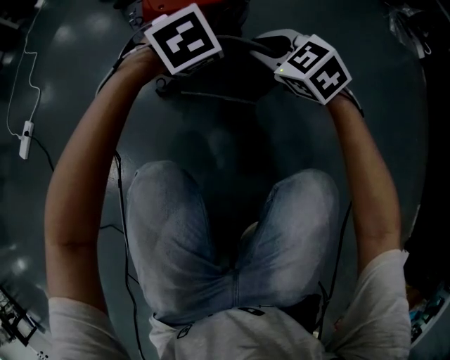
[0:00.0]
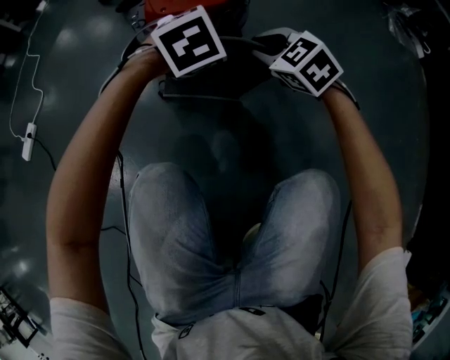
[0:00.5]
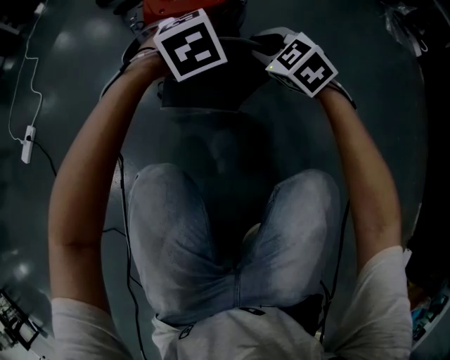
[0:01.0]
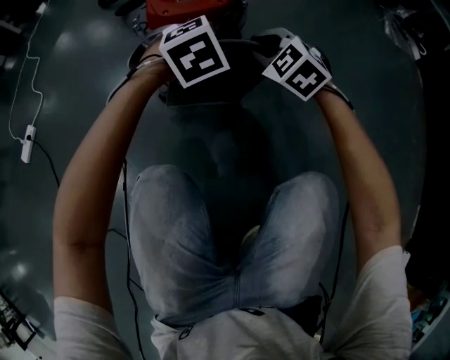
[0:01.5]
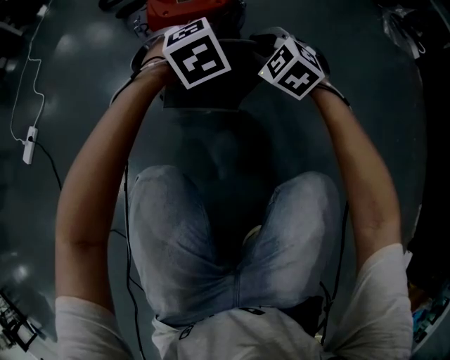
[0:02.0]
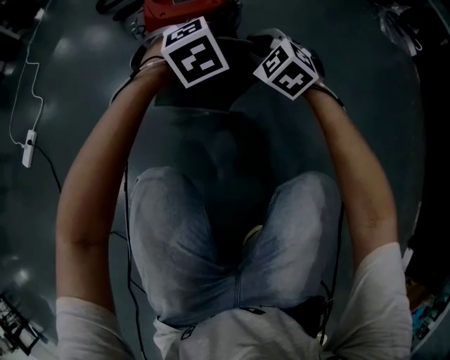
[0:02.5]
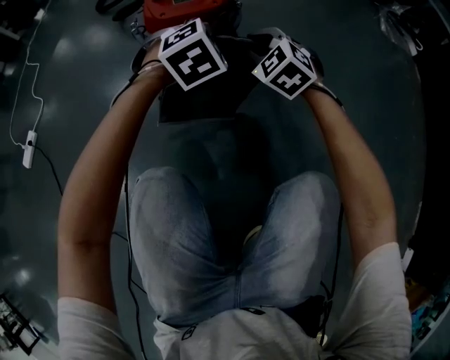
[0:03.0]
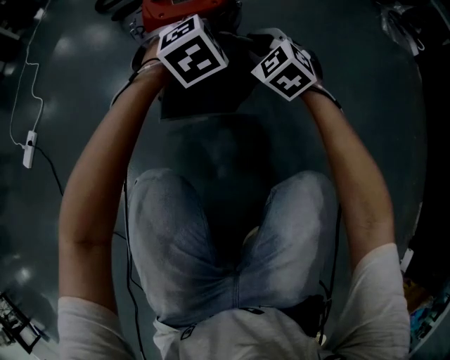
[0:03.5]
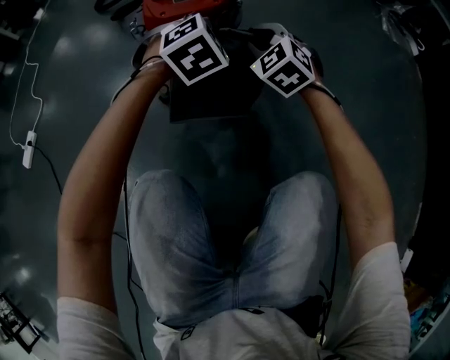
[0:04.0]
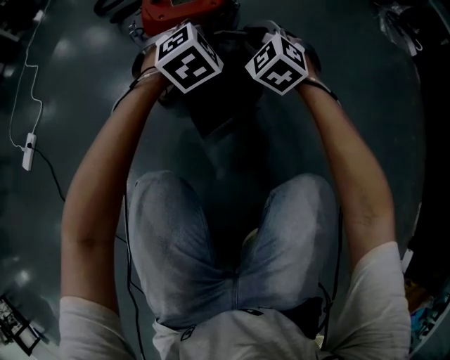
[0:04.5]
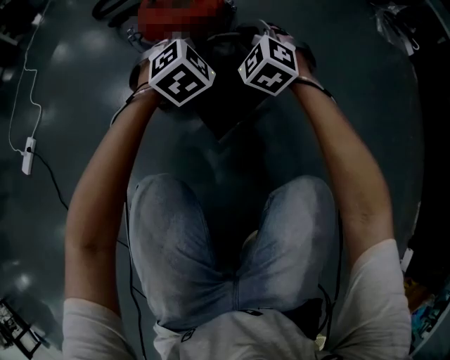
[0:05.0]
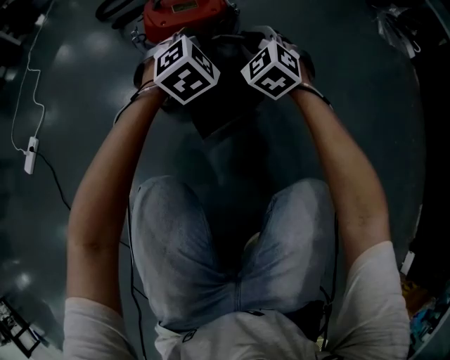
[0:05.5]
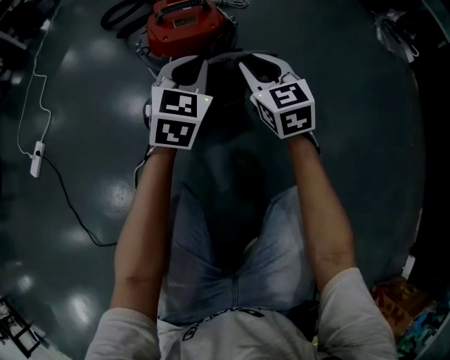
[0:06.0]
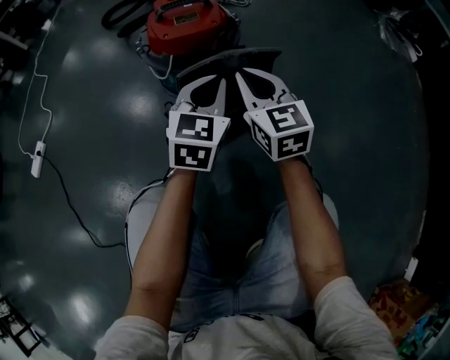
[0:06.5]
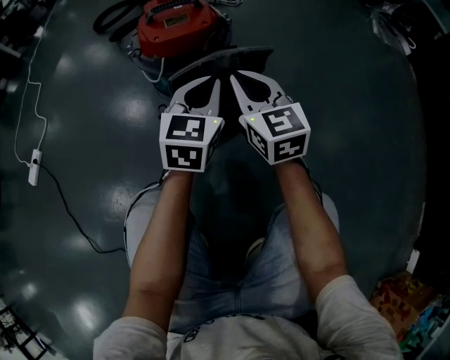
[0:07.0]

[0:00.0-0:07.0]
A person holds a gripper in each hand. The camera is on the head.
0:00.0 to 0:02.0: The right gripper turns by about 20 degrees.
0:02.0 to 0:05.0: The grippers move only a little.
0:05.0 to 0:07.0: Both grippers travel together backward, roughly 10 cm. The left gripper rolls counterclockwise, seen from behind, by about 40 degrees, while the right gripper rolls clockwise, seen from behind, by approximately 50 degrees.

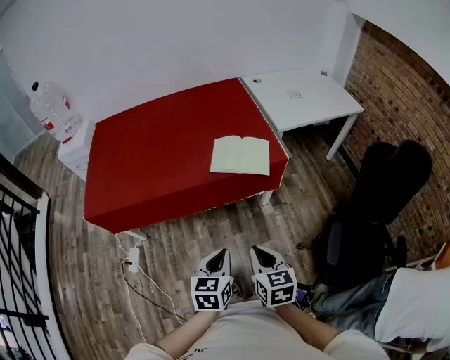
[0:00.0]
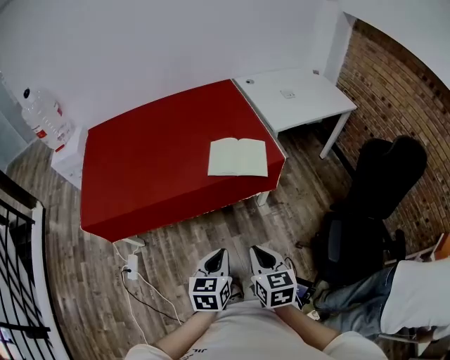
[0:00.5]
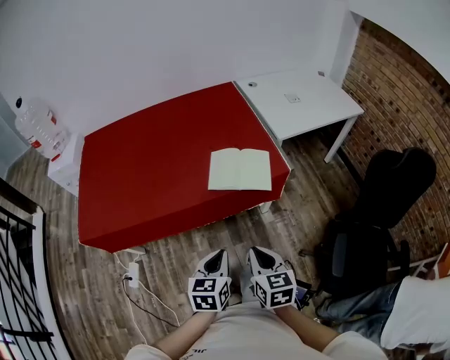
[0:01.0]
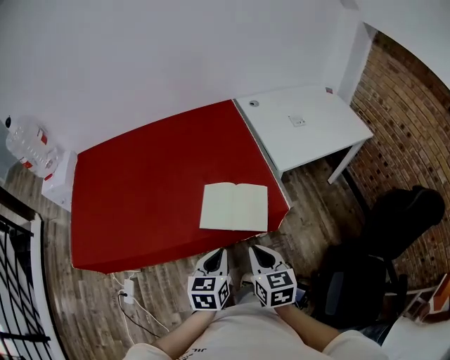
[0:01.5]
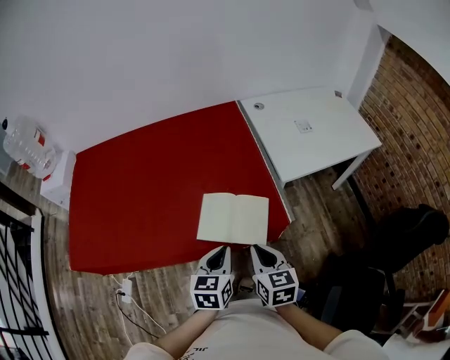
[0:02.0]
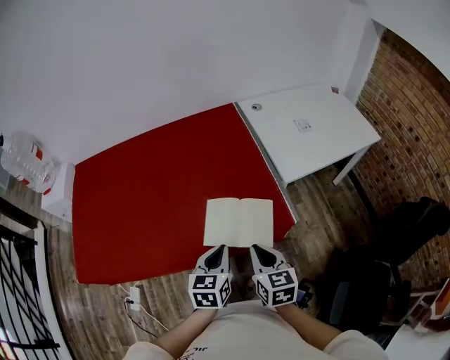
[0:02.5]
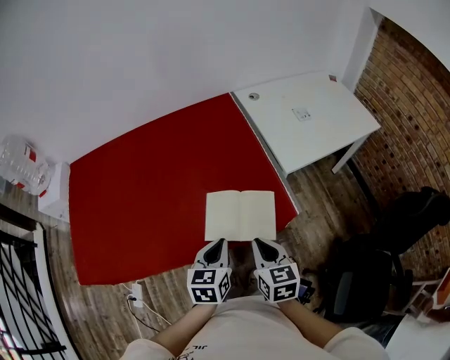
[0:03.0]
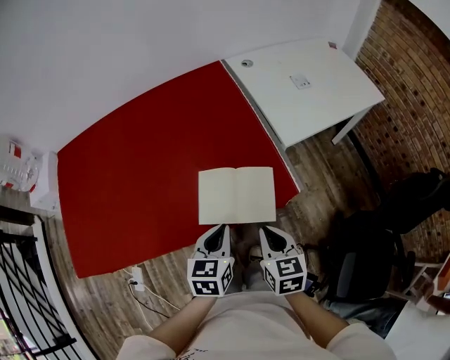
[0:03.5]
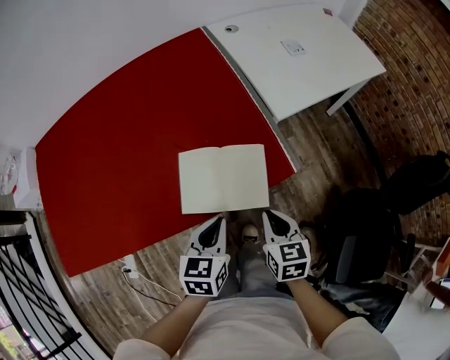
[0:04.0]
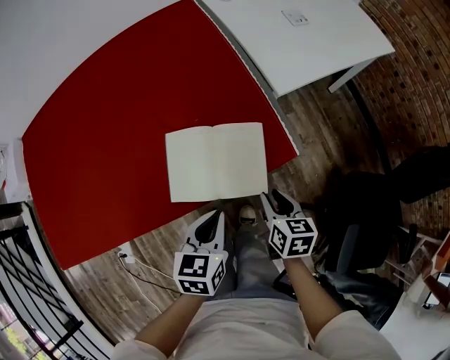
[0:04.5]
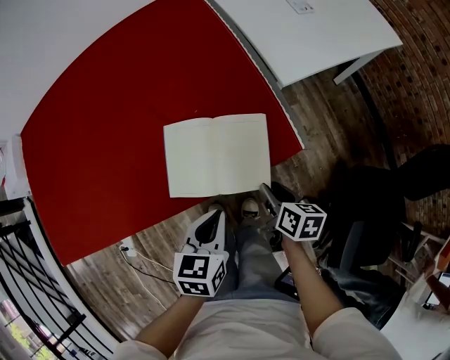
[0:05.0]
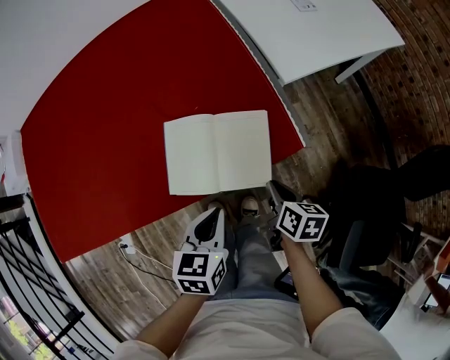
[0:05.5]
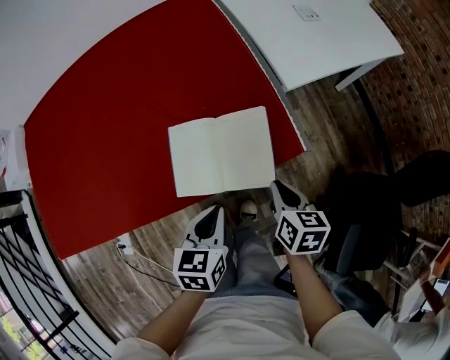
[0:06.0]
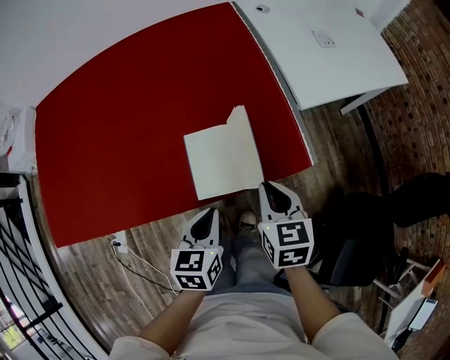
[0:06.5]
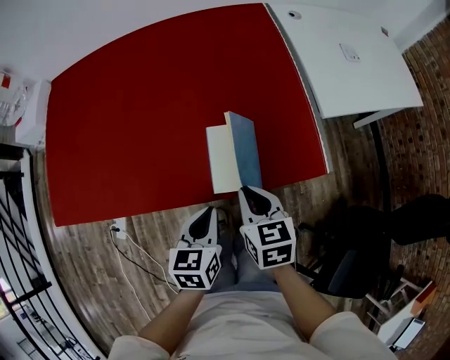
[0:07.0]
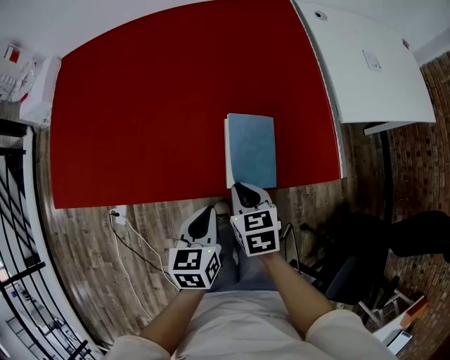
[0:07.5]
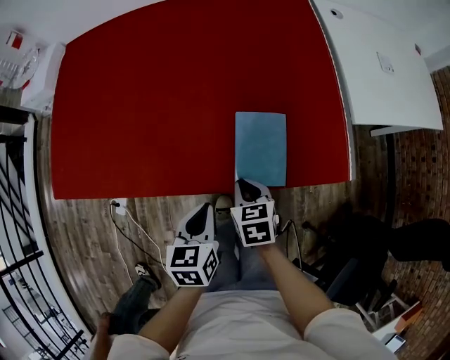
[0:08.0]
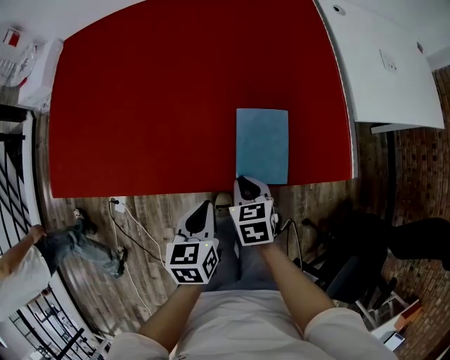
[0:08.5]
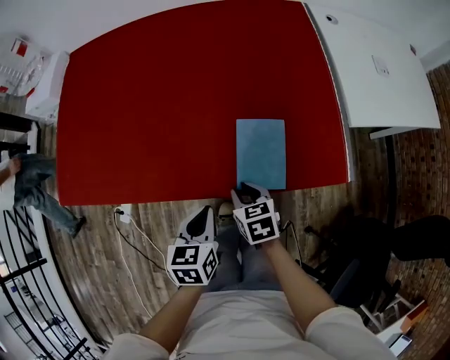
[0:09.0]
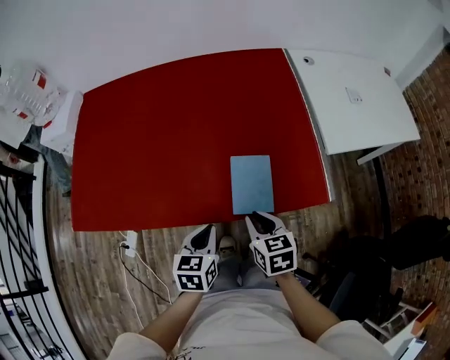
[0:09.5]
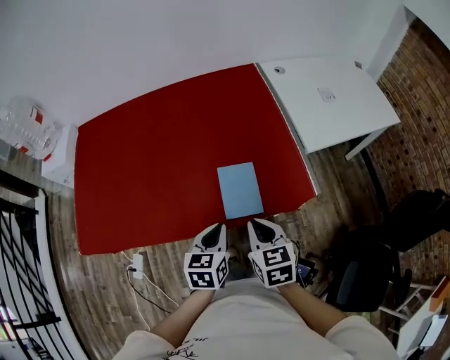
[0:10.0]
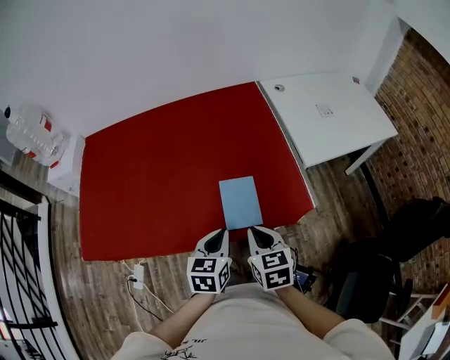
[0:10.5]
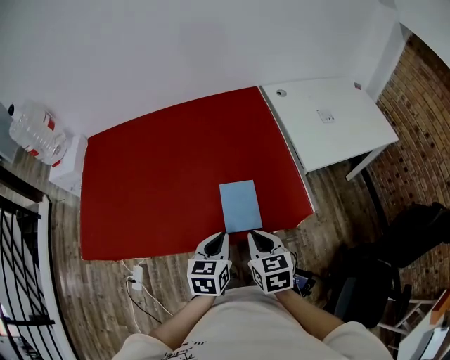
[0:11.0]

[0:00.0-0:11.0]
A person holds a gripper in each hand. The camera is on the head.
0:00.0 to 0:02.0: The grippers both shift forward by some 30 cm.
0:02.0 to 0:03.5: The grippers make only small movements.
0:03.5 to 0:05.5: The left gripper shifts approximately 10 cm downward, while the right gripper heads downward and to the right, covering roughly 15 cm, turns by some 30 degrees, and opens, then closes again.
0:05.5 to 0:07.5: The left gripper moves to the left, about 15 cm, and rotates roughly 20 degrees. Meanwhile the right gripper moves to the left, some 20 cm, and rotates around the line of its fingers by some 40 degrees, counterclockwise from behind.
0:07.5 to 0:09.0: The right gripper goes approximately 5 cm downward.
0:09.0 to 0:11.0: The left gripper travels upward and to the right by approximately 15 cm. The right gripper heads upward and to the right, covering approximately 20 cm, and changes its angle by approximately 20 degrees.

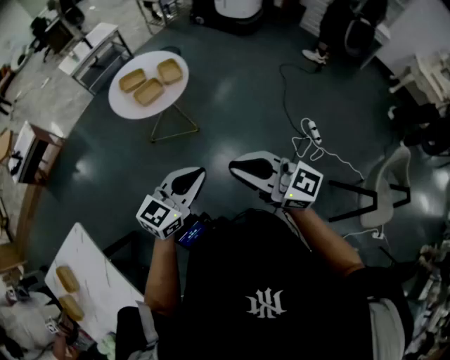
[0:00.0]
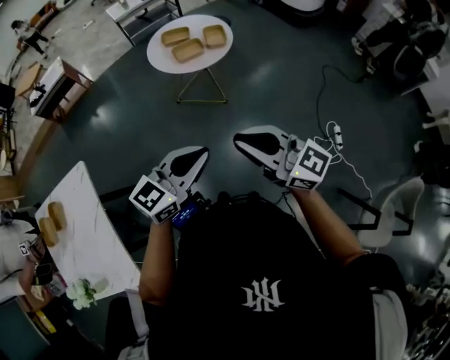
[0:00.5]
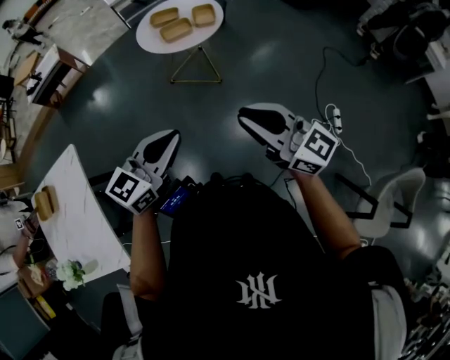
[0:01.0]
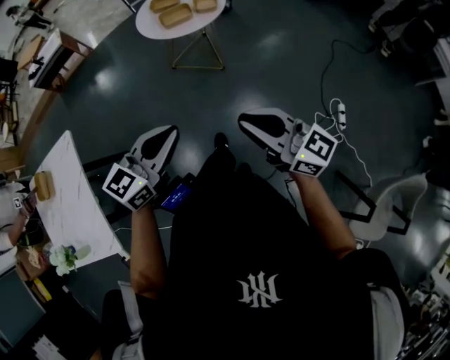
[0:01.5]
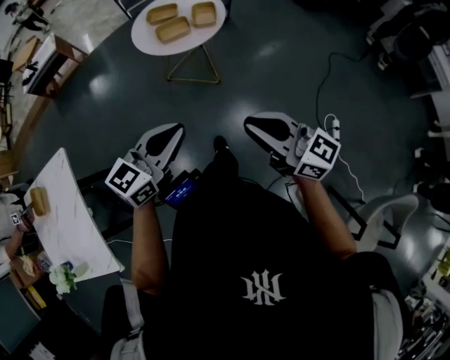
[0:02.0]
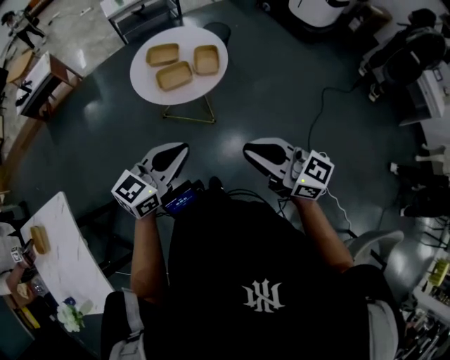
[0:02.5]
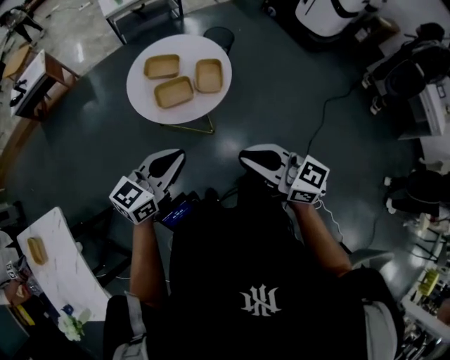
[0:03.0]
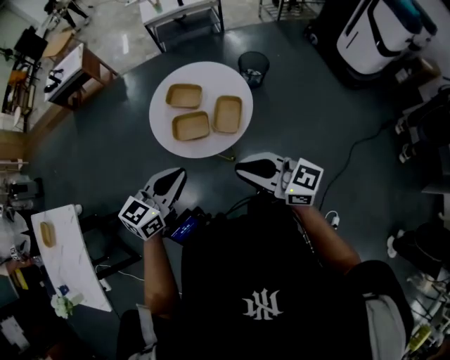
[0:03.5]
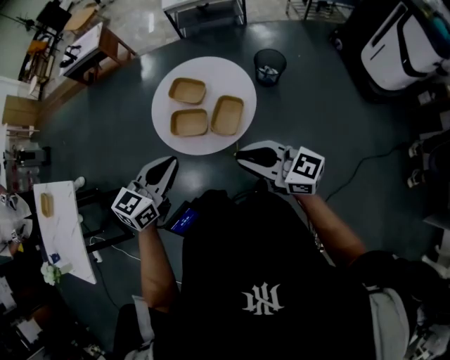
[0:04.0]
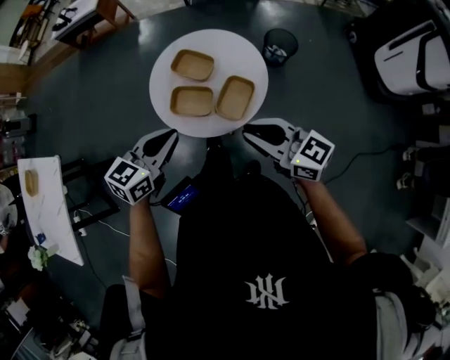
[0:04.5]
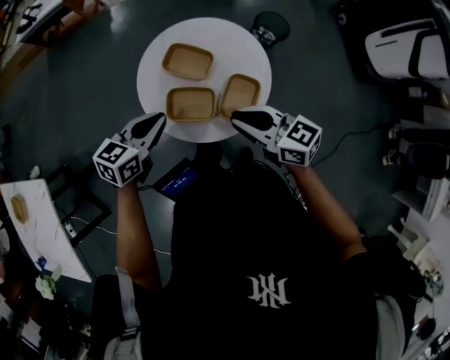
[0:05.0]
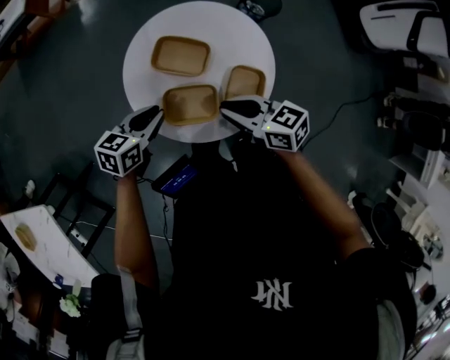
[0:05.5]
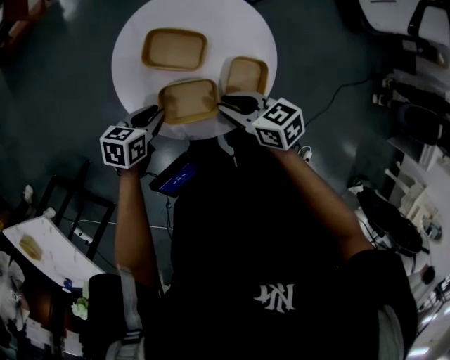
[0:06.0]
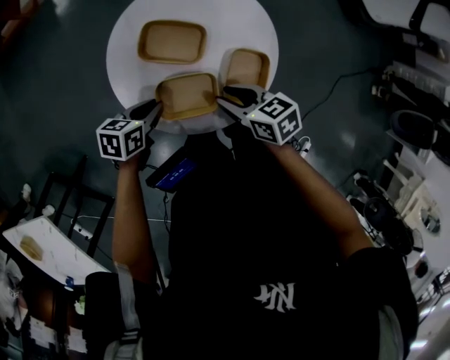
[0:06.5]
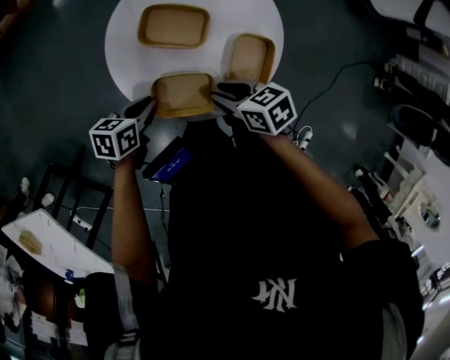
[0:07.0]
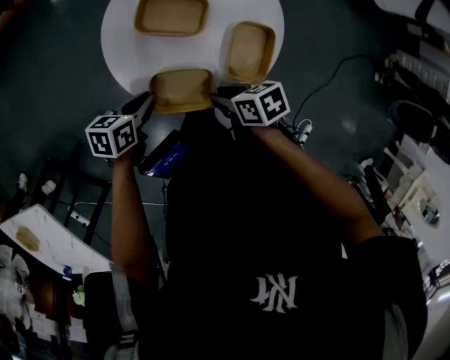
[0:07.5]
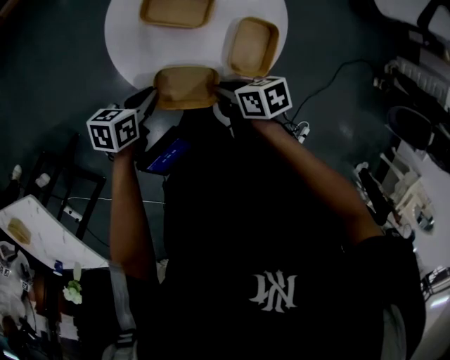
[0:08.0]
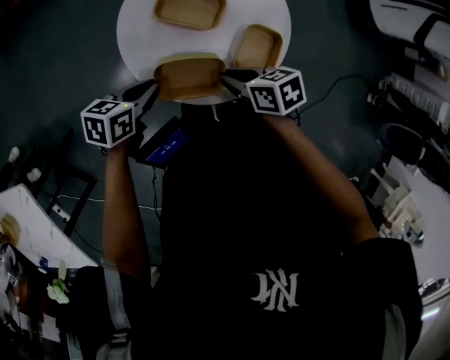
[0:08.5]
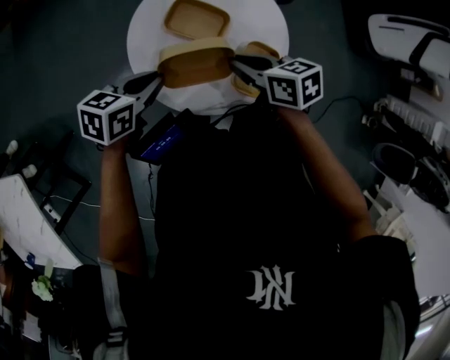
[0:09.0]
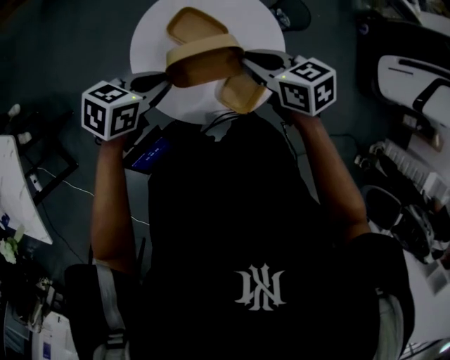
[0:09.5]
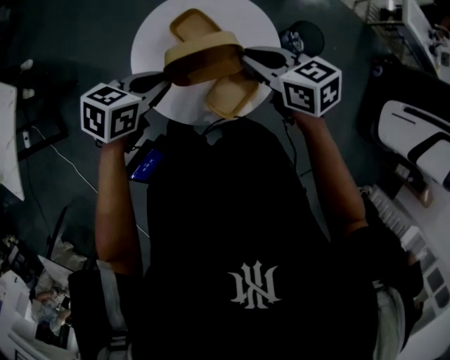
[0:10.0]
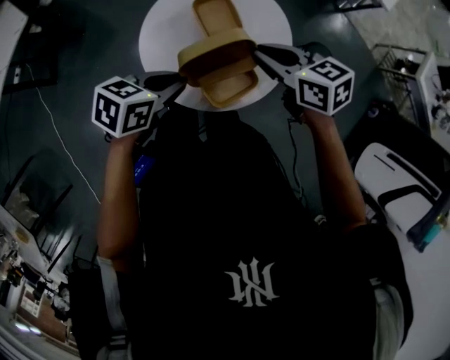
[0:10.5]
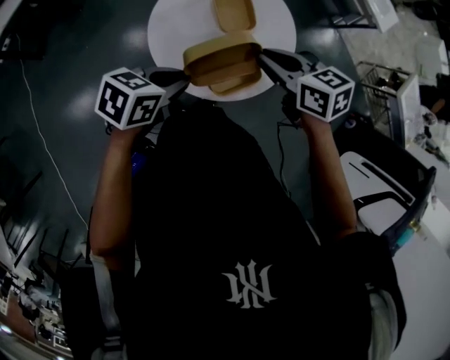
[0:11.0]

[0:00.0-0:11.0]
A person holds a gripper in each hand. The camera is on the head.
0:00.0 to 0:02.0: The right gripper goes approximately 10 cm to the right and forward; the left gripper shifts by roughly 5 cm.
0:02.0 to 0:03.5: Both grippers travel together forward, some 35 cm. The left gripper changes its angle by approximately 20 degrees. The right gripper changes its angle by some 30 degrees.
0:03.5 to 0:05.5: The two grippers go roughly 30 cm forward and downward. The right gripper rotates some 30 degrees, while the left gripper swivels about 30 degrees.
0:05.5 to 0:07.5: The left gripper travels downward by approximately 10 cm. The right gripper shifts some 10 cm downward, changes its angle by roughly 40 degrees, and opens.
0:07.5 to 0:09.0: The left gripper is displaced upward by roughly 10 cm; the right gripper shifts by roughly 15 cm, and rotates roughly 20 degrees.
0:09.0 to 0:11.0: The right gripper moves upward, some 5 cm, and rotates roughly 50 degrees, while the left gripper moves approximately 20 cm, and changes its angle by approximately 40 degrees.
